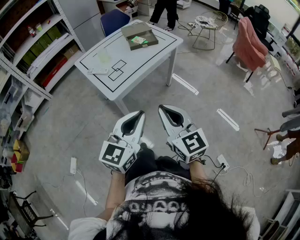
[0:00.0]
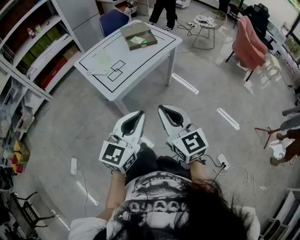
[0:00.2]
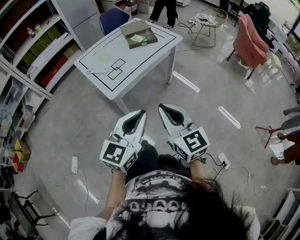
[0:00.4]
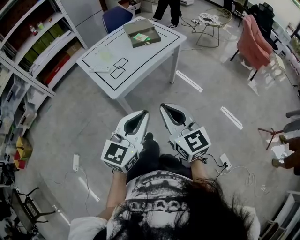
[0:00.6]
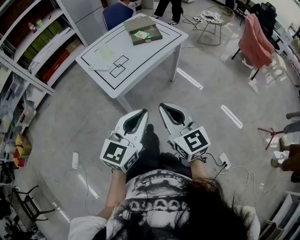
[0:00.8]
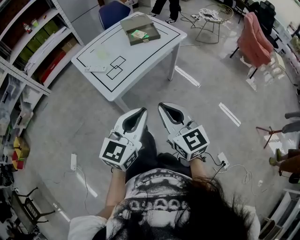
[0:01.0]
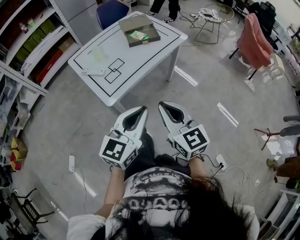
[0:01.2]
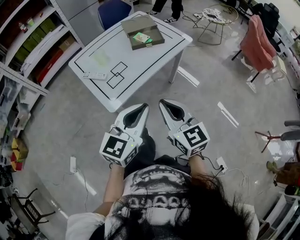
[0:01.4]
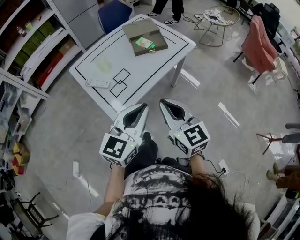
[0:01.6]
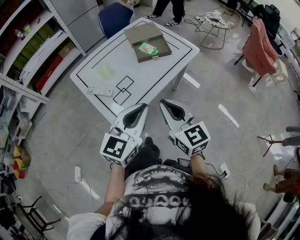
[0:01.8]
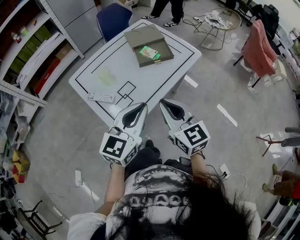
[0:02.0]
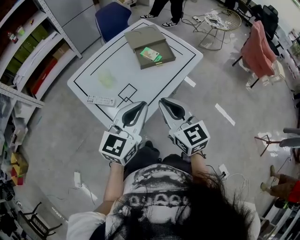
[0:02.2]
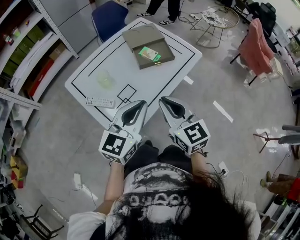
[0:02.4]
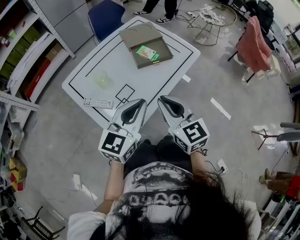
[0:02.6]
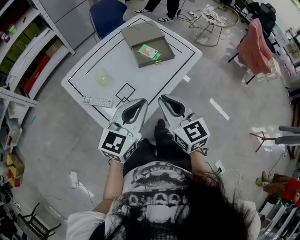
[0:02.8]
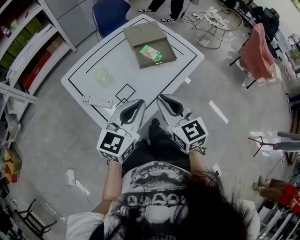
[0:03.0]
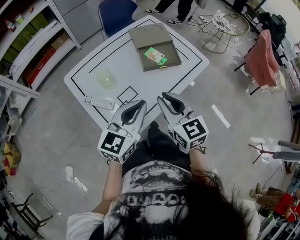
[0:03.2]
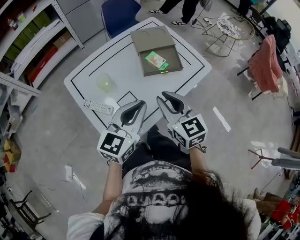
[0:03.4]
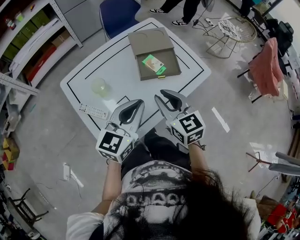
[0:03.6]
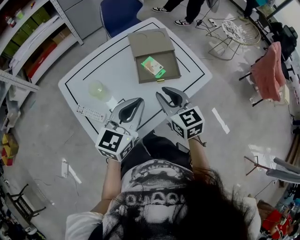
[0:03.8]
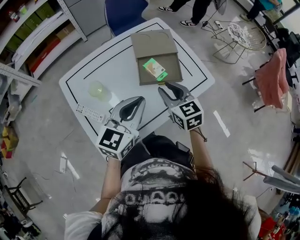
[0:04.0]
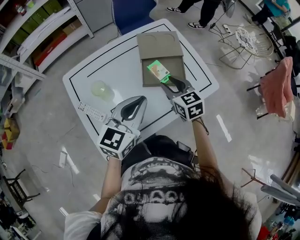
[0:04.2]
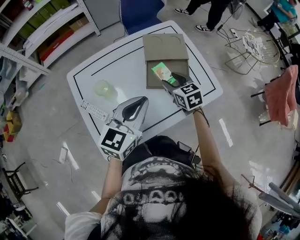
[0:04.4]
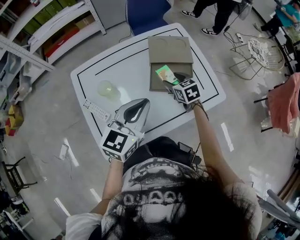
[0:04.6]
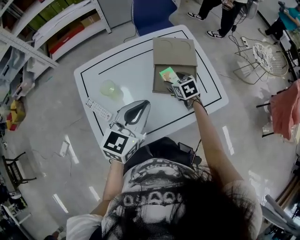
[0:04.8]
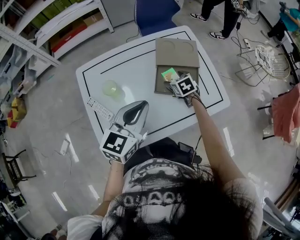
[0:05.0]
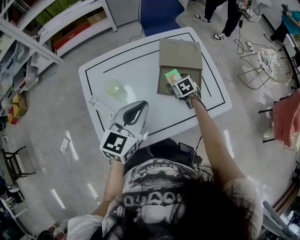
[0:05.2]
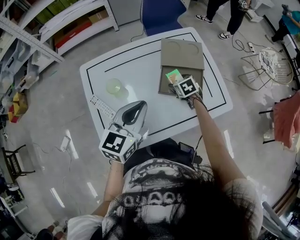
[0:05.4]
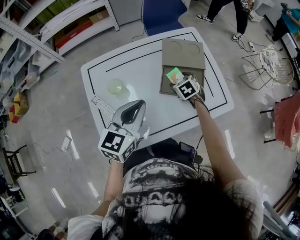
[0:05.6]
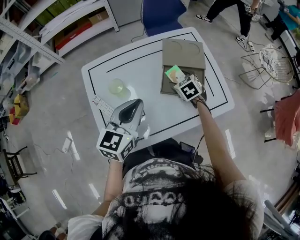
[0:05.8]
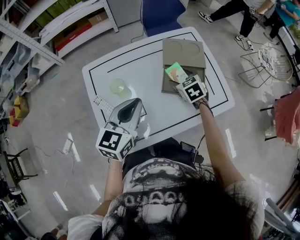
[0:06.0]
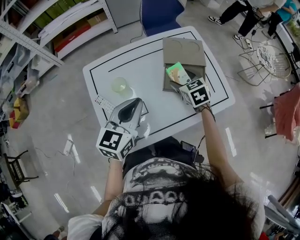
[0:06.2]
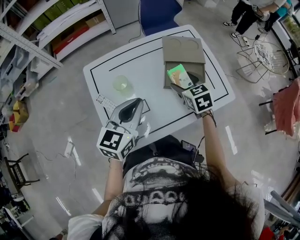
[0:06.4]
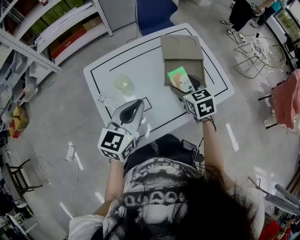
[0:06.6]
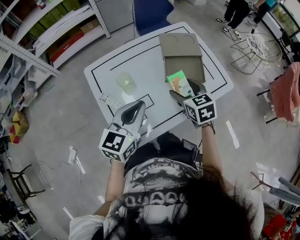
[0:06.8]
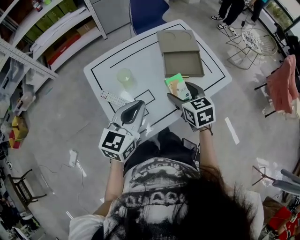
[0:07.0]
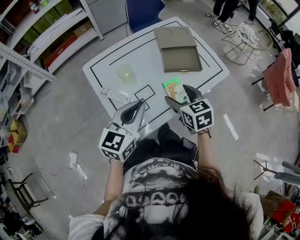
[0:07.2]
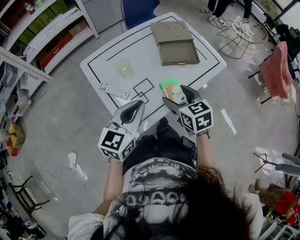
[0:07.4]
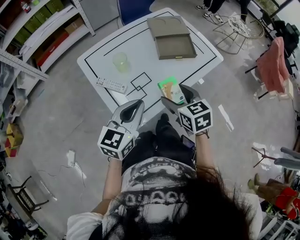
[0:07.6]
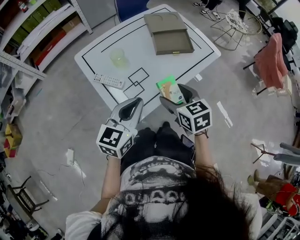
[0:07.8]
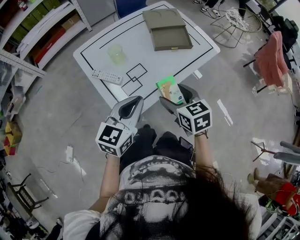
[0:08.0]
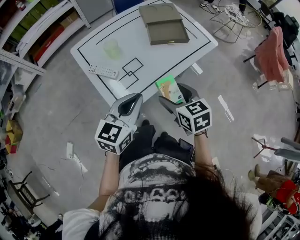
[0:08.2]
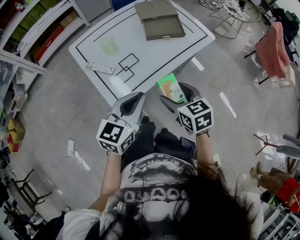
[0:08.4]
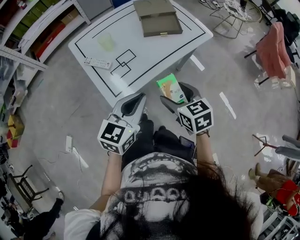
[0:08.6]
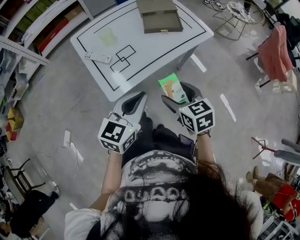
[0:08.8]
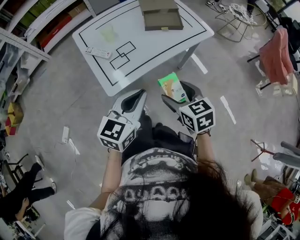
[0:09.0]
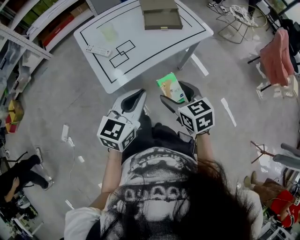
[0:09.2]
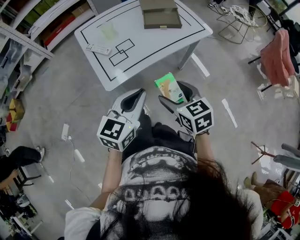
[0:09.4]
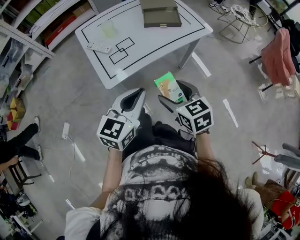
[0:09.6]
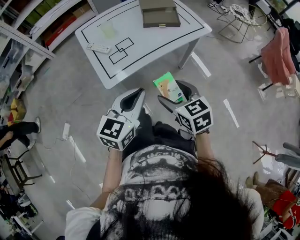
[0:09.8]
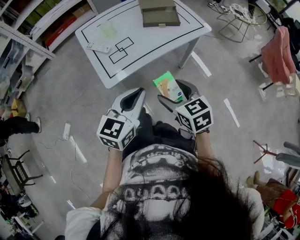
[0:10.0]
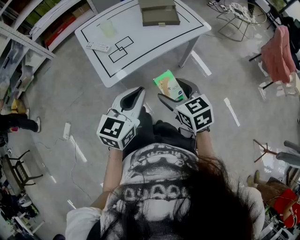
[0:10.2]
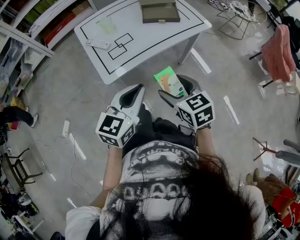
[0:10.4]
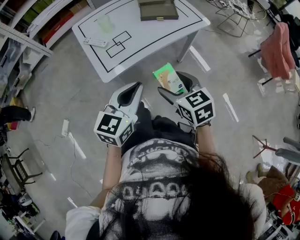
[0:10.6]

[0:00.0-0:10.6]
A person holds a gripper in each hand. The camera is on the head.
0:00.0 to 0:01.6: Both grippers travel together forward, some 25 cm.
0:01.6 to 0:03.0: Both grippers travel together forward and to the left, roughly 20 cm.
0:03.0 to 0:04.6: The left gripper goes approximately 20 cm forward. The right gripper is displaced forward and downward by about 40 cm, changes its angle by about 30 degrees, and opens.
0:04.6 to 0:06.0: The right gripper goes downward and returns, some 10 cm each way. Meanwhile the left gripper heads to the left, covering some 10 cm.
0:06.0 to 0:07.6: The left gripper is displaced backward by roughly 20 cm, while the right gripper shifts about 35 cm backward, and swivels roughly 30 degrees.
0:07.6 to 0:09.0: Both grippers move backward and to the right, some 20 cm.
0:09.0 to 0:10.6: The two grippers go approximately 5 cm backward.

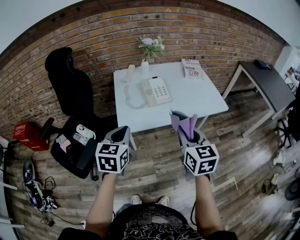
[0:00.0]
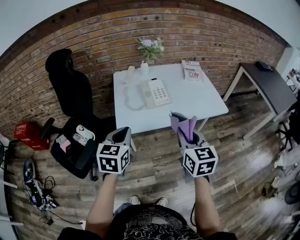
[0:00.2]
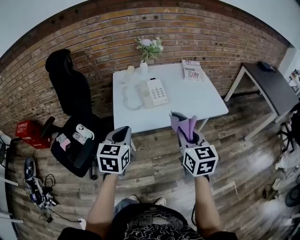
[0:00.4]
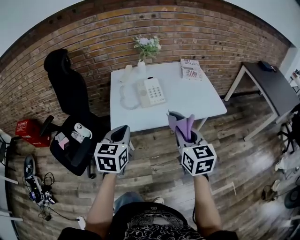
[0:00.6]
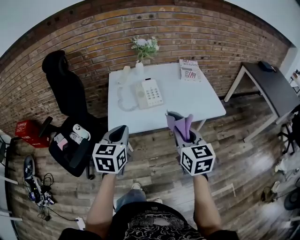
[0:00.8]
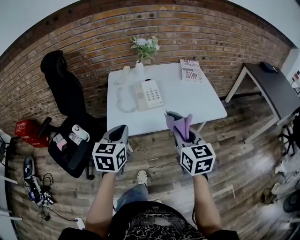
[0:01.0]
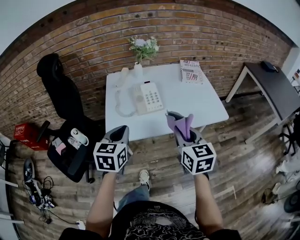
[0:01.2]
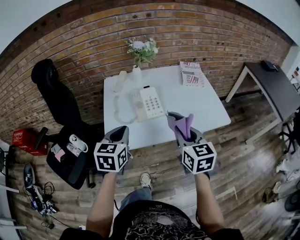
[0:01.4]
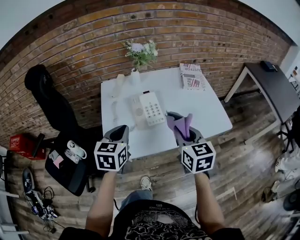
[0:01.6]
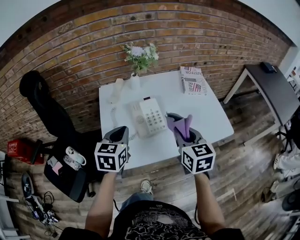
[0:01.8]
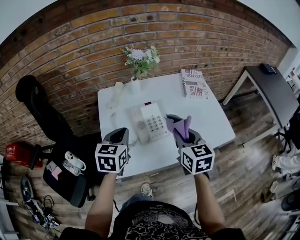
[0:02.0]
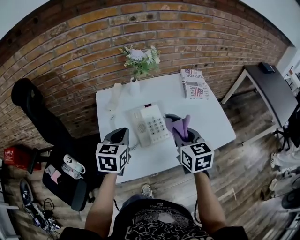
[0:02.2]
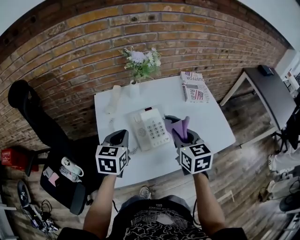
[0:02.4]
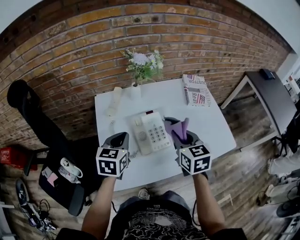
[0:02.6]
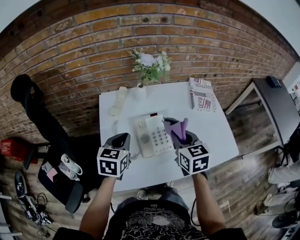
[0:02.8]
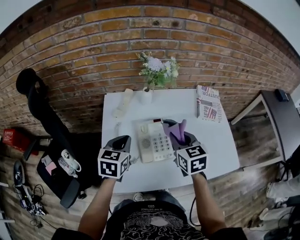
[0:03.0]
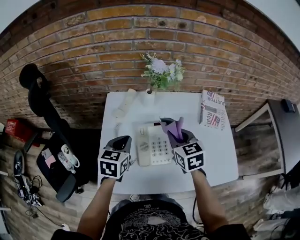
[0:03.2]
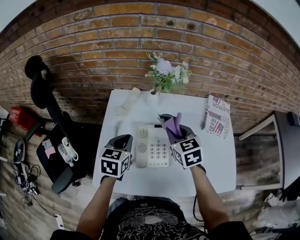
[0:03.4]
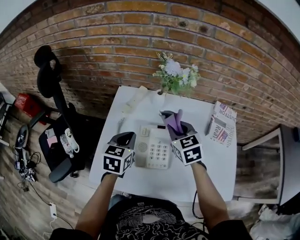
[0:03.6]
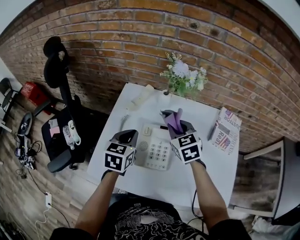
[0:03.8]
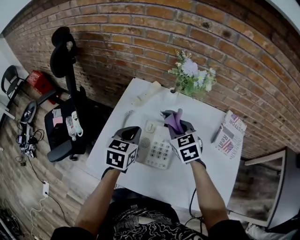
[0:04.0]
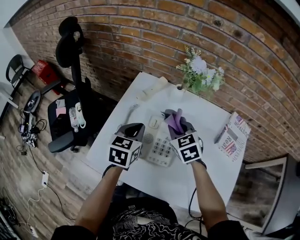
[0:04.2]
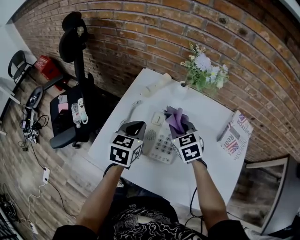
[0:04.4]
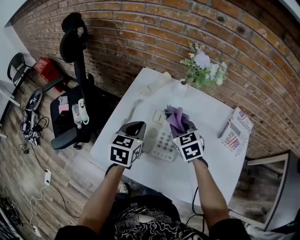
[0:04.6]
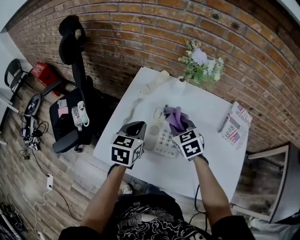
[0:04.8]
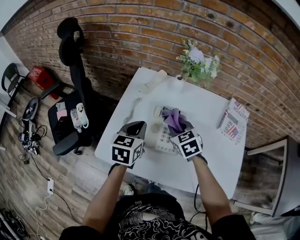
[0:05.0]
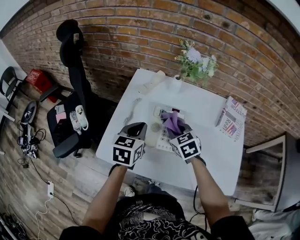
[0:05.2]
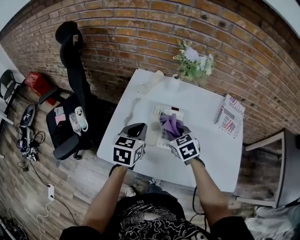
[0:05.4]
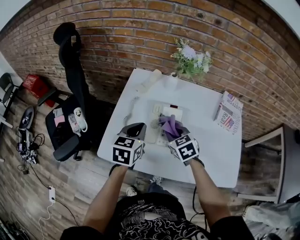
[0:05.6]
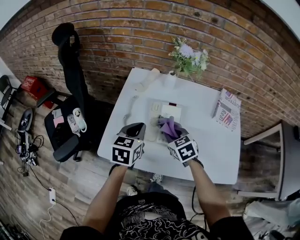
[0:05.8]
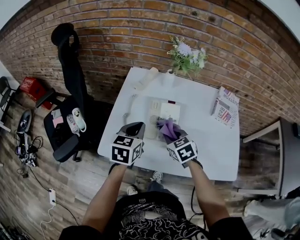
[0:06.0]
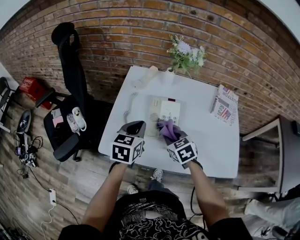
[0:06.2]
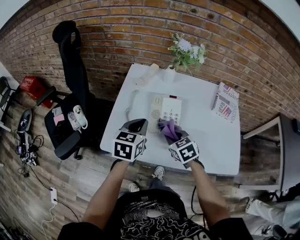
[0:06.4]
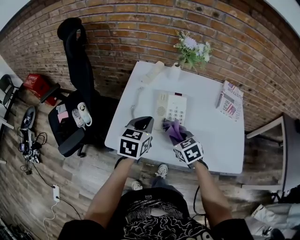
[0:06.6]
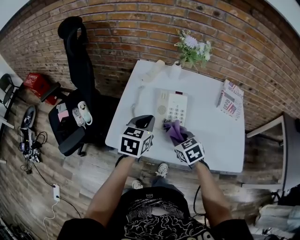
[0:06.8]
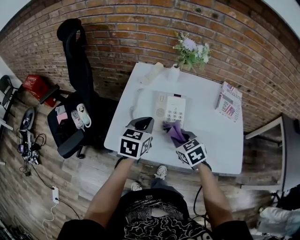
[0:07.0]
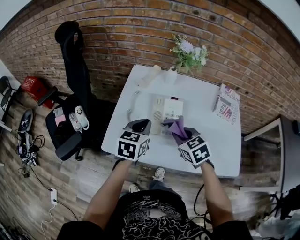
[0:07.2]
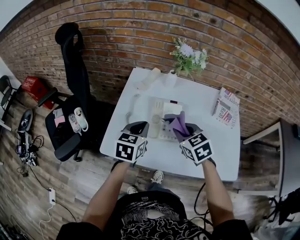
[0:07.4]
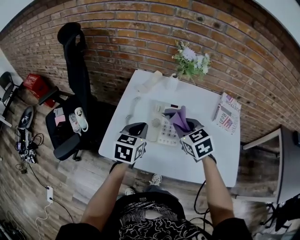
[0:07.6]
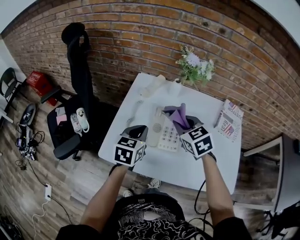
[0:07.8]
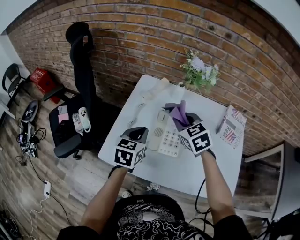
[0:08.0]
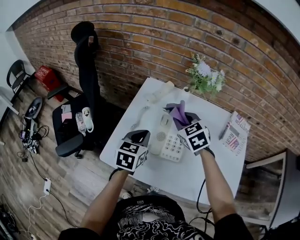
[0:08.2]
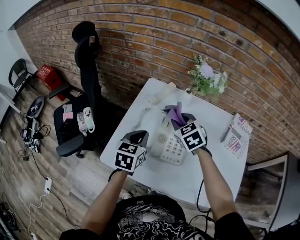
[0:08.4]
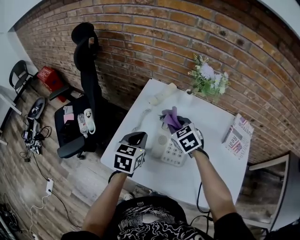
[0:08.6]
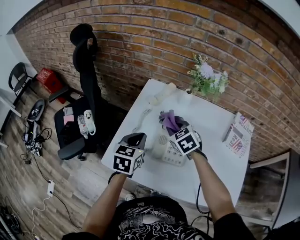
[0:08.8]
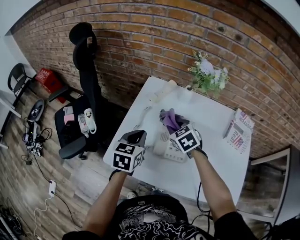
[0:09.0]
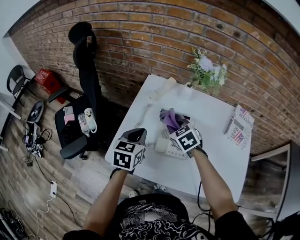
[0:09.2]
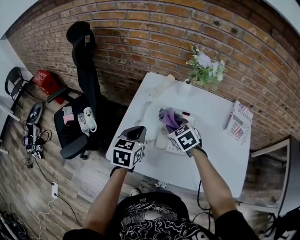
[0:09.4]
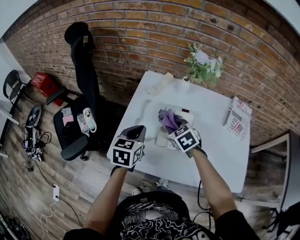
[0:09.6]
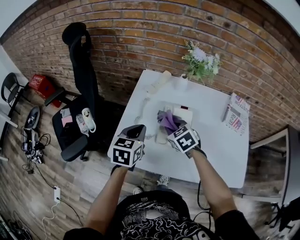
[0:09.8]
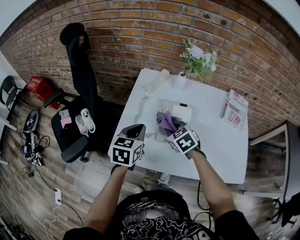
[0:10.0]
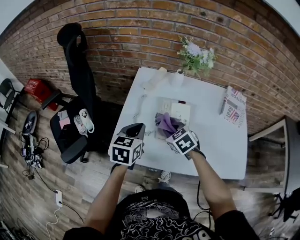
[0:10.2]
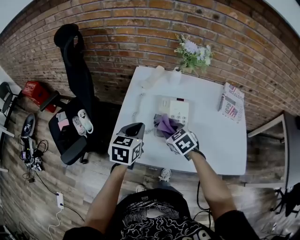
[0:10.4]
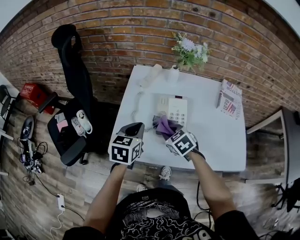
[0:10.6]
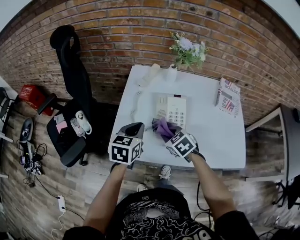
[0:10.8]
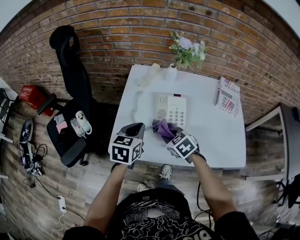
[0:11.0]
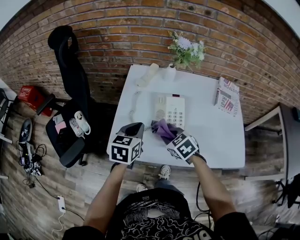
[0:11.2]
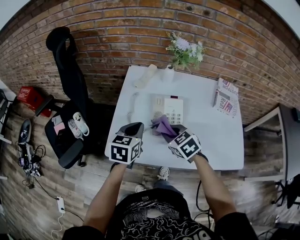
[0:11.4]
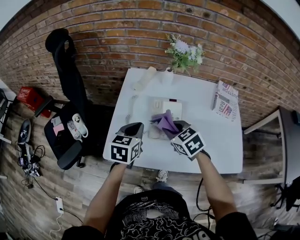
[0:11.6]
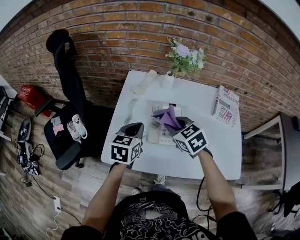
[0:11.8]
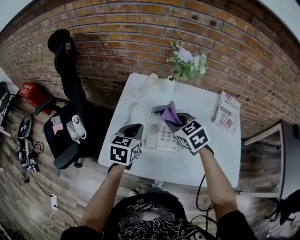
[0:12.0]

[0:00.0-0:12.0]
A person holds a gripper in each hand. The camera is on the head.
0:00.0 to 0:01.6: Both grippers move forward, about 20 cm.
0:01.6 to 0:03.0: Both grippers travel together forward, about 20 cm.
0:03.0 to 0:04.4: The left gripper swivels about 30 degrees. Meanwhile the right gripper shifts by some 15 cm, and rotates some 40 degrees.
0:04.4 to 0:06.0: The left gripper is displaced backward by about 10 cm, while the right gripper heads backward, covering some 15 cm.
0:06.0 to 0:07.6: The right gripper goes some 10 cm upward.
0:07.6 to 0:09.0: The left gripper moves approximately 5 cm, while the right gripper is displaced forward, downward and to the left by approximately 15 cm.
0:09.0 to 0:10.4: The right gripper is displaced backward by roughly 10 cm.
0:10.4 to 0:12.0: The left gripper shifts by approximately 5 cm; the right gripper travels upward, forward and to the right by about 15 cm.

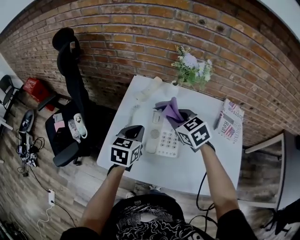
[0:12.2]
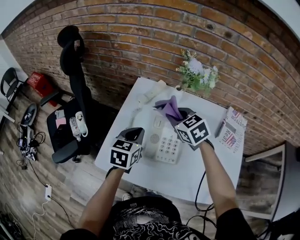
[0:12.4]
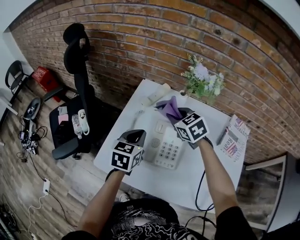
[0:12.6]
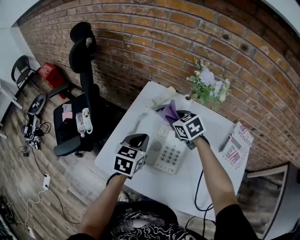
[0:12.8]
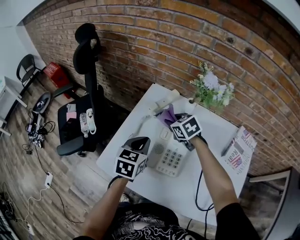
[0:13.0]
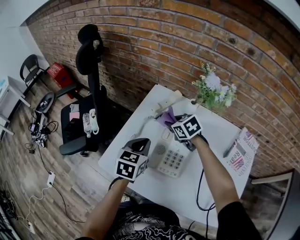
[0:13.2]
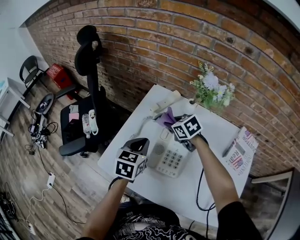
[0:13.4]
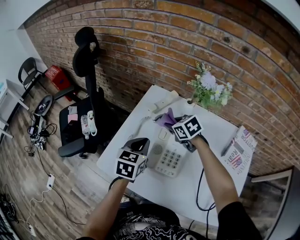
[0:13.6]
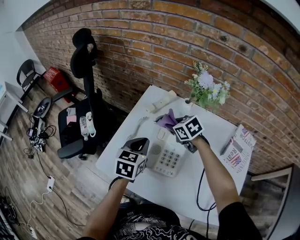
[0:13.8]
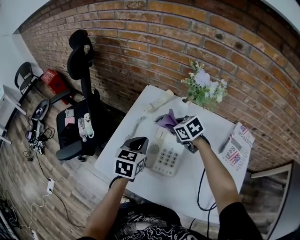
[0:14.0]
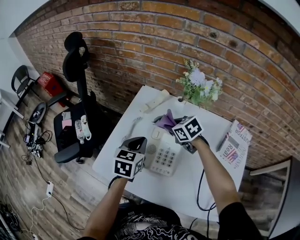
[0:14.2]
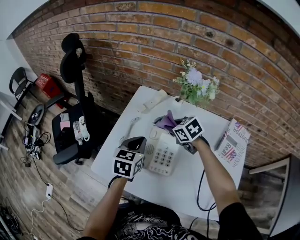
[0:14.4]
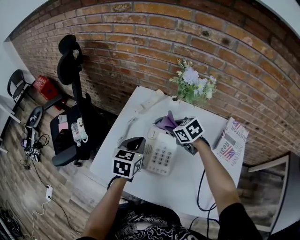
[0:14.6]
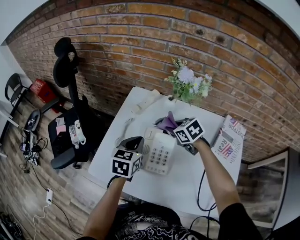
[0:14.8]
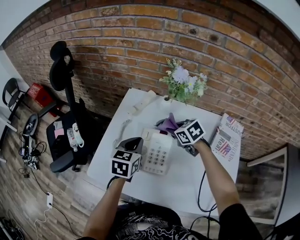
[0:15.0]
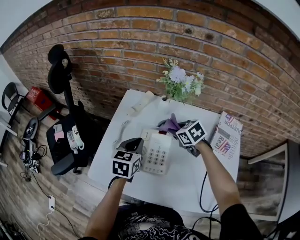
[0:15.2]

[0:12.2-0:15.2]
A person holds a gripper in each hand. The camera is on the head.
0:12.2 to 0:13.8: The right gripper is displaced downward and forward by some 10 cm, and swivels about 20 degrees.
0:13.8 to 0:15.2: The right gripper moves to the right and backward, roughly 10 cm.
